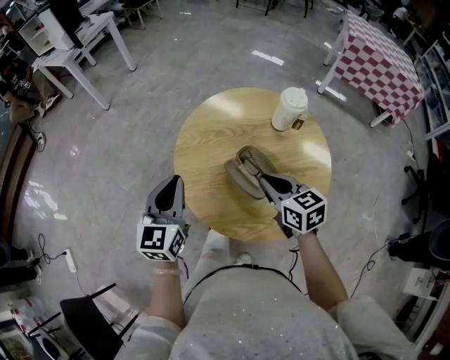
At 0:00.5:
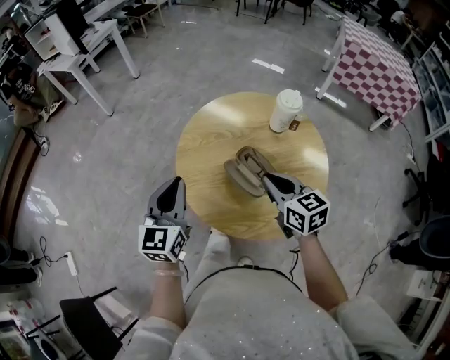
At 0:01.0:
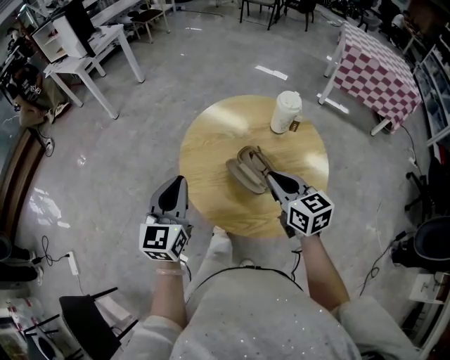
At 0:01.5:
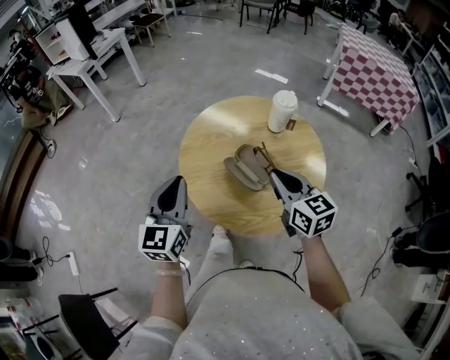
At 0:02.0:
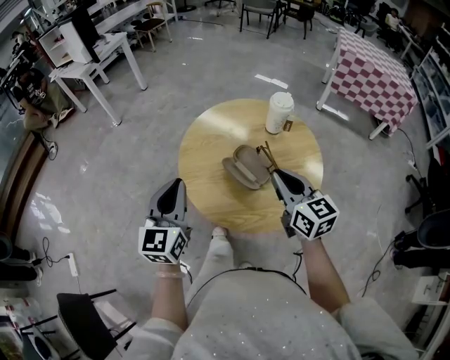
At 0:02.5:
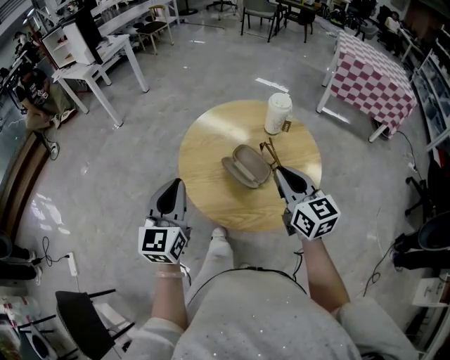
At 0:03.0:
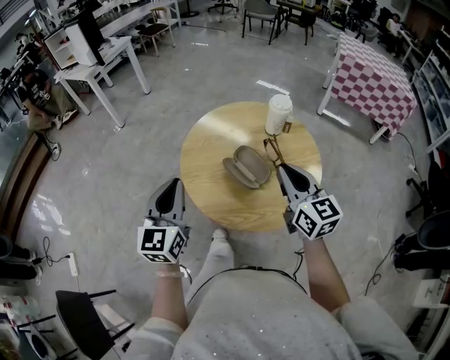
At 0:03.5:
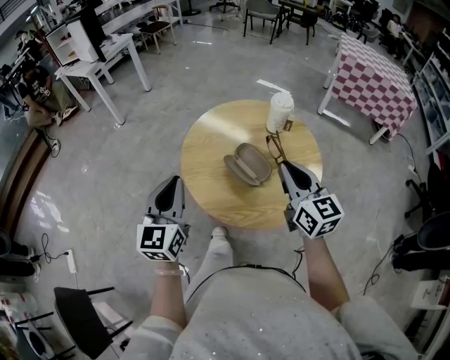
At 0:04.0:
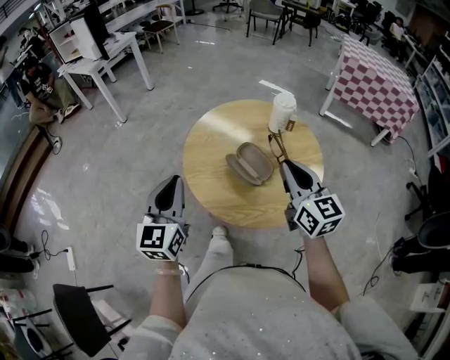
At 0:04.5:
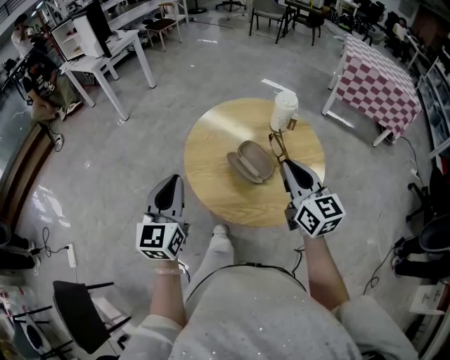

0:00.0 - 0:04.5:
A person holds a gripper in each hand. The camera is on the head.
0:00.0 - 0:02.0: The right gripper shifts roughly 10 cm upward and backward, and rotates some 20 degrees, while the left gripper is displaced backward and upward by roughly 10 cm.
0:02.0 - 0:04.5: The grippers stay close to where they were, moving slightly.

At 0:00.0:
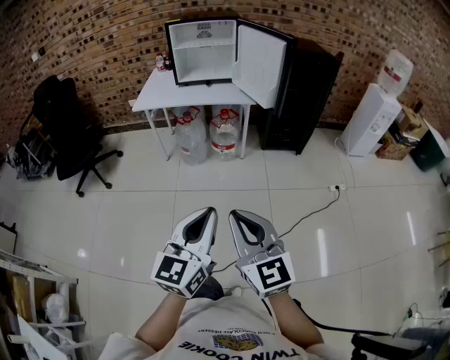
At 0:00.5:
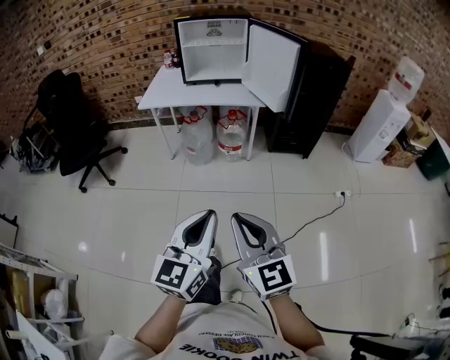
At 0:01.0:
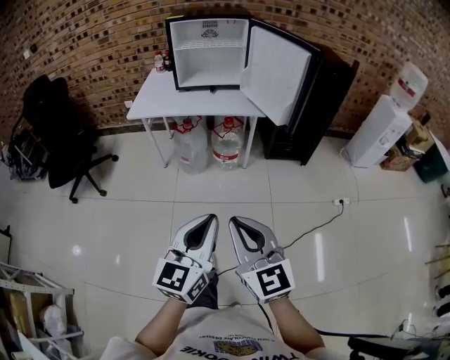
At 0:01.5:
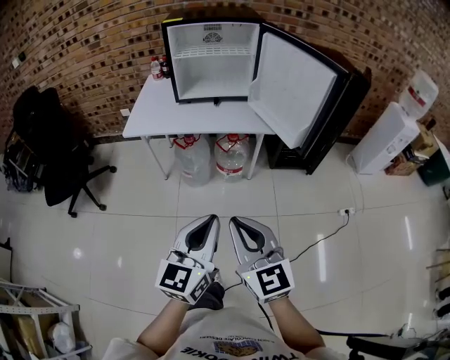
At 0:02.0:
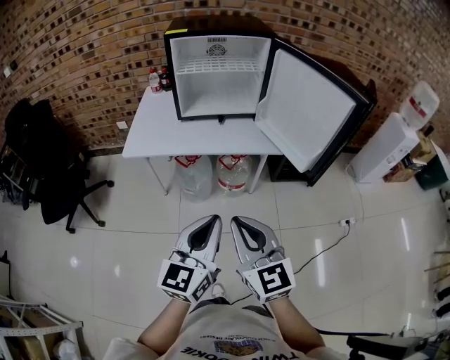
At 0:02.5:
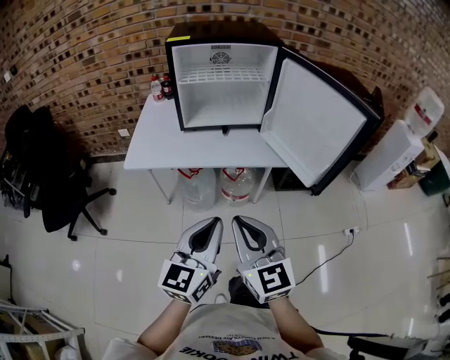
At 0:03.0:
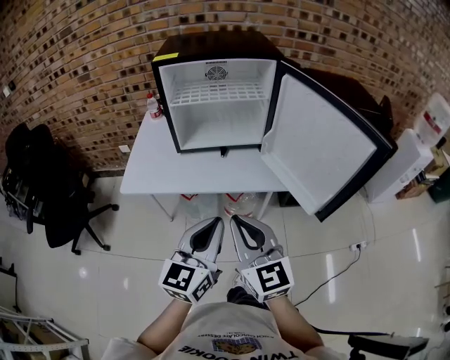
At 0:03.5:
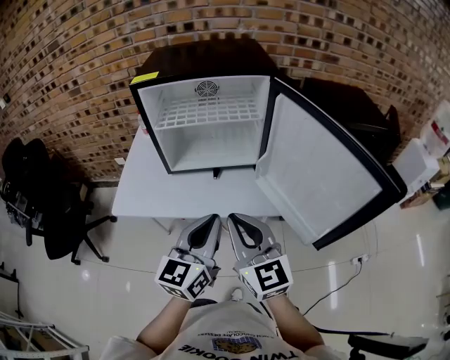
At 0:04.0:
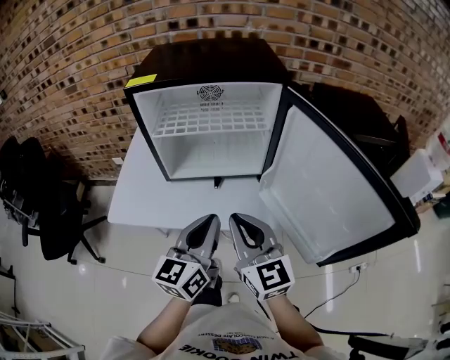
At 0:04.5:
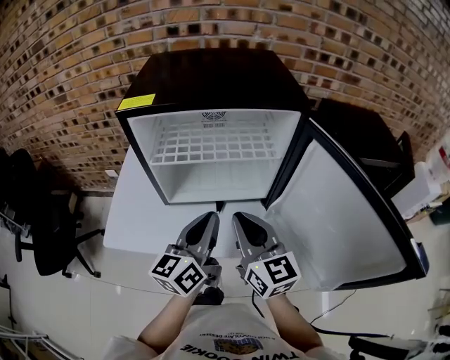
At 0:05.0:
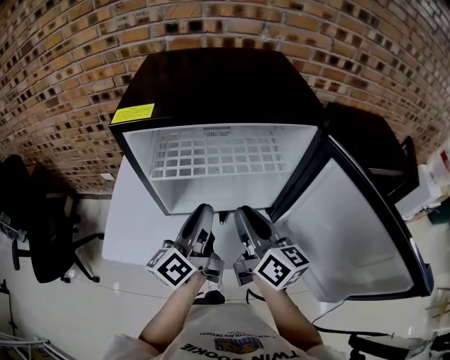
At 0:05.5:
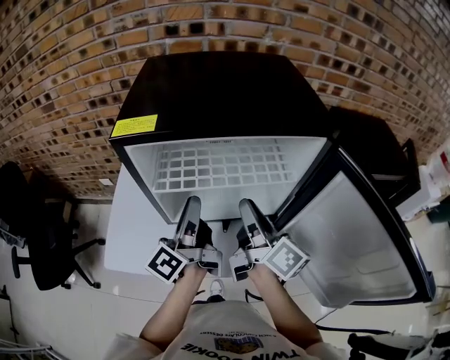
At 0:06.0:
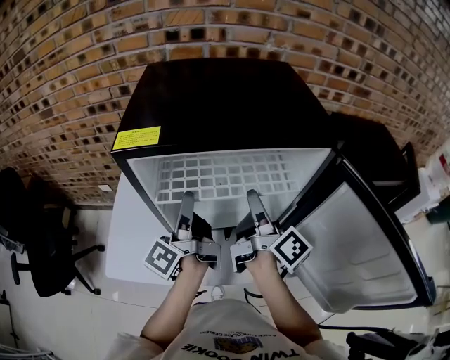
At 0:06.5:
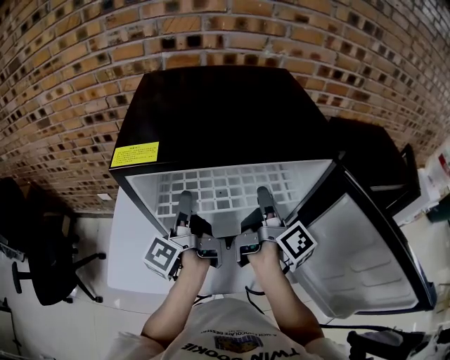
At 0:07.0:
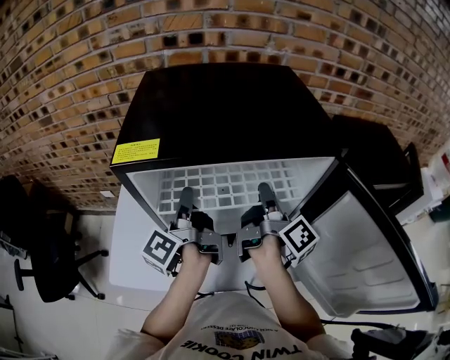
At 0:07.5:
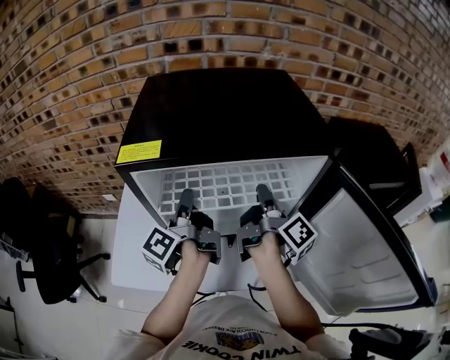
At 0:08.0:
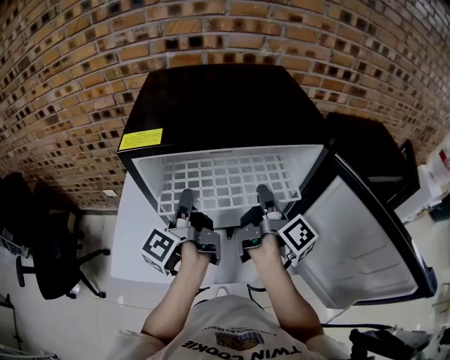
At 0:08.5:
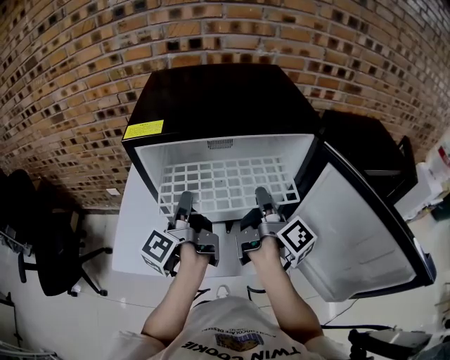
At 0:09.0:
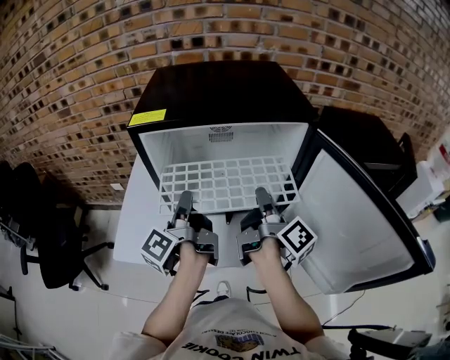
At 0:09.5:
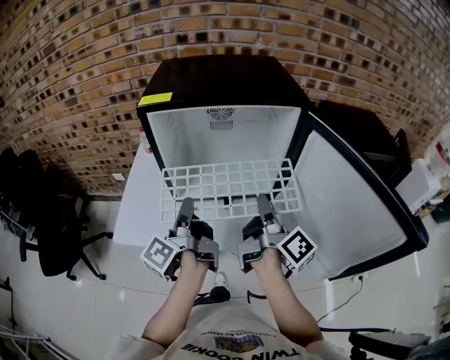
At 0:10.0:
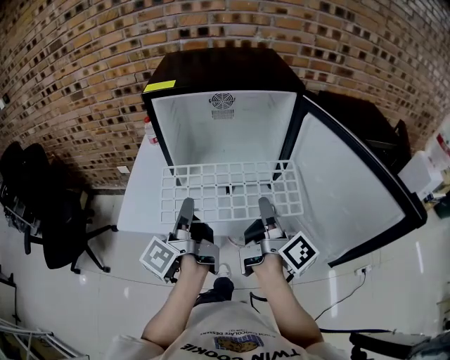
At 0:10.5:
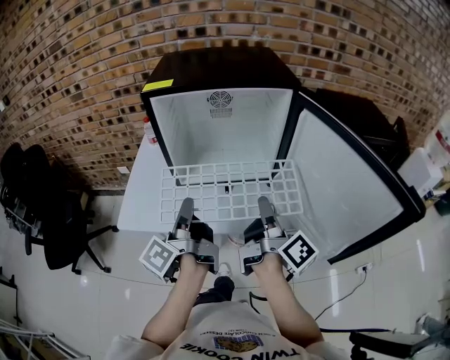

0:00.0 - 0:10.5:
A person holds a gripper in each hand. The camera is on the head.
0:00.0 - 0:02.0: Both grippers move forward, approximately 40 cm.
0:02.0 - 0:04.0: The grippers both shift forward by some 35 cm.
0:04.0 - 0:06.5: The right gripper moves forward, about 30 cm, twists about 70 degrees clockwise, seen from behind, and opens its fingers, while the left gripper heads forward and to the left, covering roughly 30 cm, twists approximately 60 degrees counterclockwise, seen from behind, and opens its fingers.
0:06.5 - 0:08.5: The two grippers go approximately 5 cm backward. The left gripper closes.
0:08.5 - 0:10.5: The grippers both shift backward by some 20 cm.

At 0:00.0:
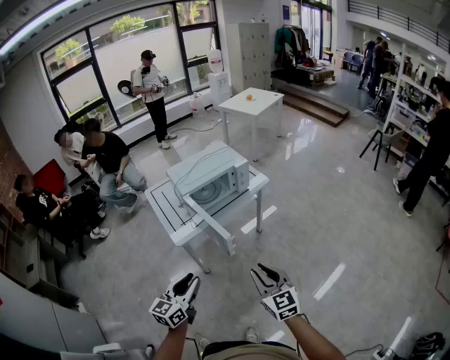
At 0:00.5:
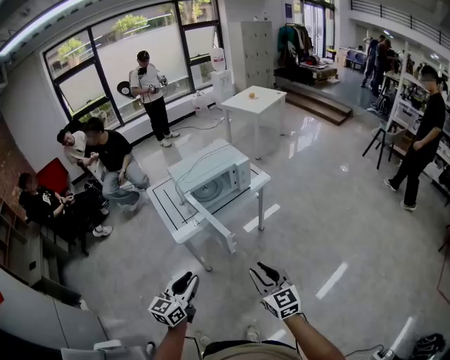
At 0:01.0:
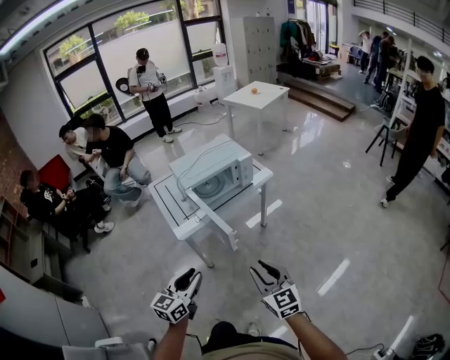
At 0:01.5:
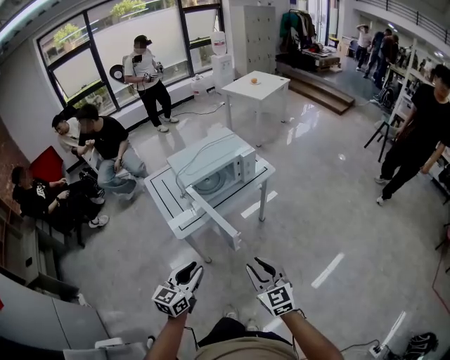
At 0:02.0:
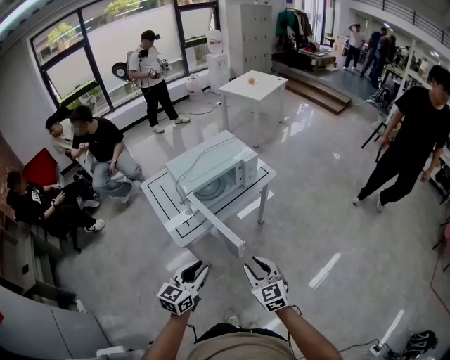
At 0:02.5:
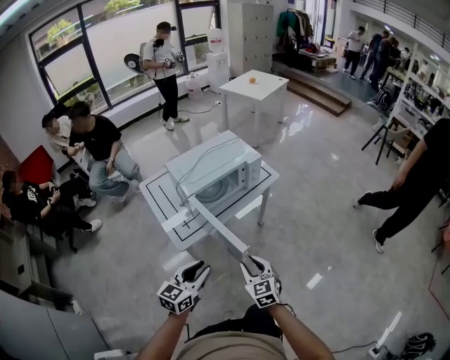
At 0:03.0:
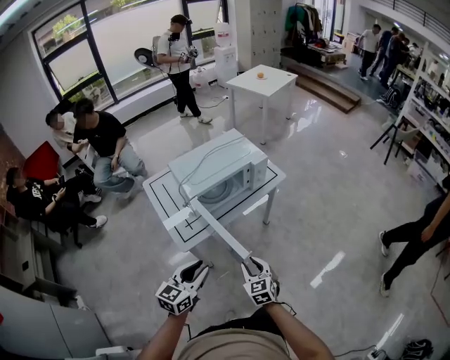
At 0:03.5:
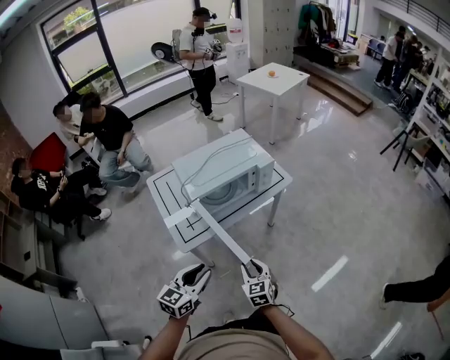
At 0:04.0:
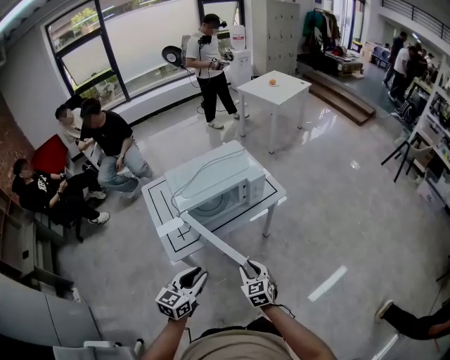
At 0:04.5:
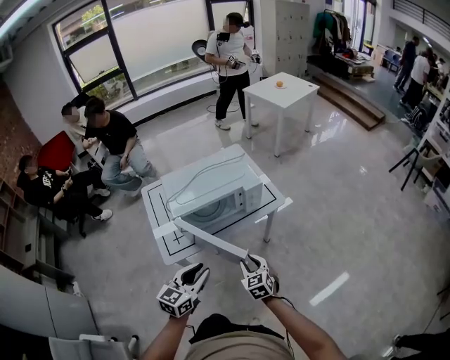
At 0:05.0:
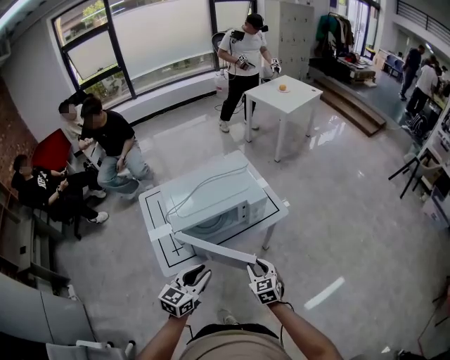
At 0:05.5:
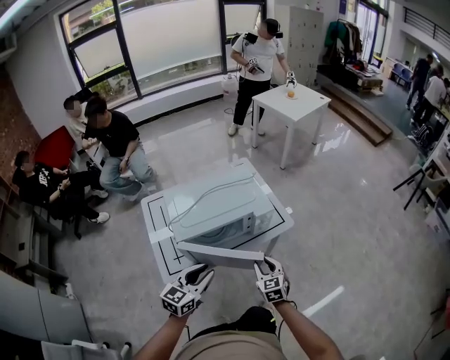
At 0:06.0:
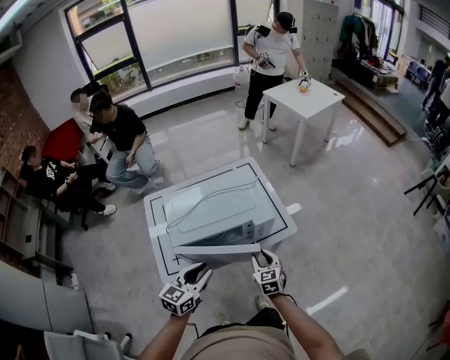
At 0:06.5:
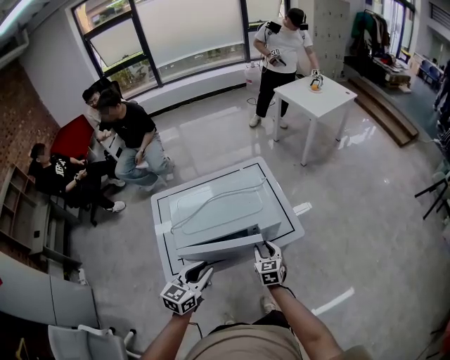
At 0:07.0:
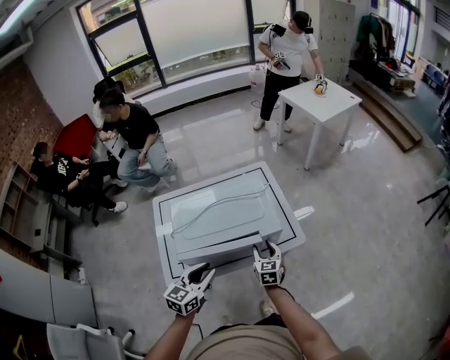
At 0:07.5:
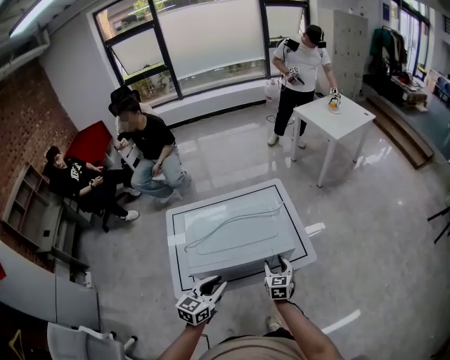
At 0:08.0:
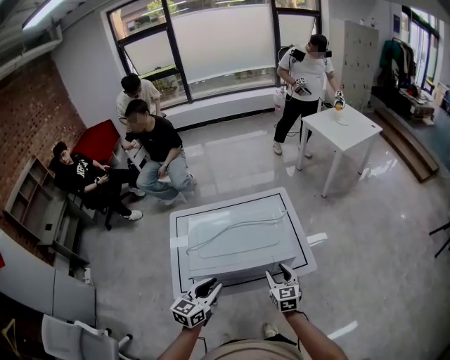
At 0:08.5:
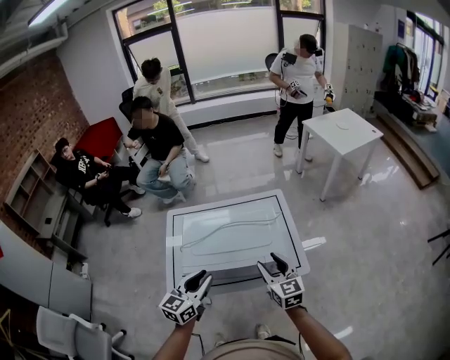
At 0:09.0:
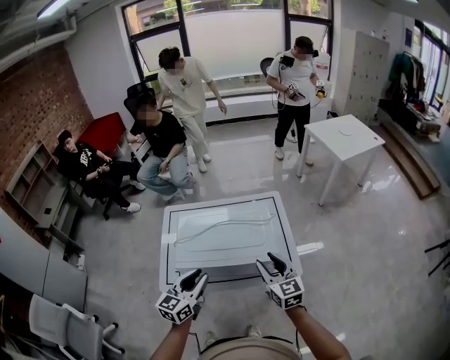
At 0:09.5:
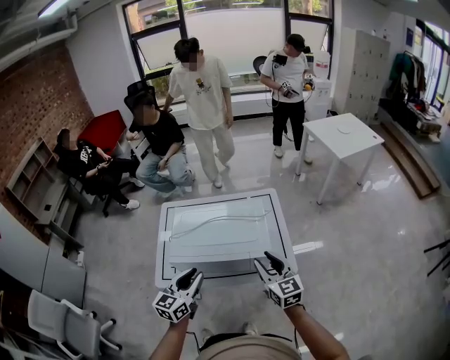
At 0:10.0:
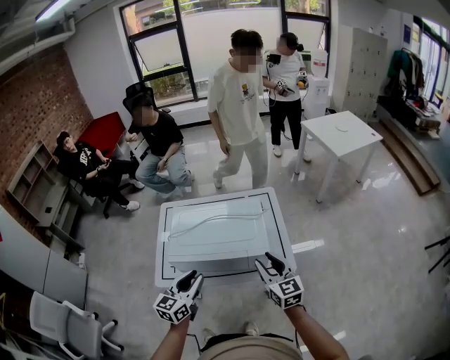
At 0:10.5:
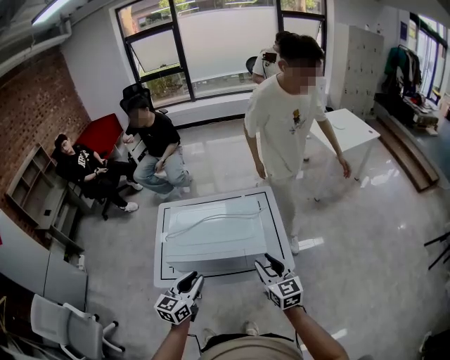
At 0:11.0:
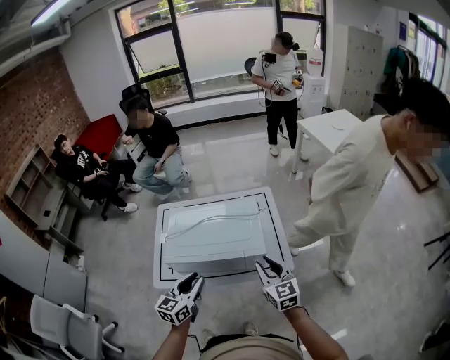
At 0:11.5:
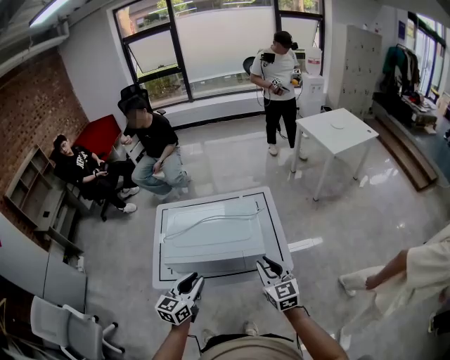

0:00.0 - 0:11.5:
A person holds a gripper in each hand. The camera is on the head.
0:00.0 - 0:02.0: The left gripper goes roughly 10 cm forward; the right gripper moves forward, to the left and downward, about 15 cm.
0:02.0 - 0:04.0: The right gripper is displaced forward and downward by roughly 20 cm. The left gripper travels forward by approximately 10 cm.
0:04.0 - 0:06.0: Both grippers move forward, some 25 cm.
0:06.0 - 0:07.5: The left gripper moves forward, approximately 5 cm; the right gripper goes approximately 10 cm forward, and opens up.
0:07.5 - 0:09.5: The left gripper moves upward, roughly 5 cm, and rotates some 20 degrees; the right gripper moves upward, roughly 20 cm, and turns by some 30 degrees.
0:09.5 - 0:11.5: The grippers move only a little.
